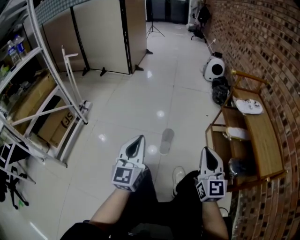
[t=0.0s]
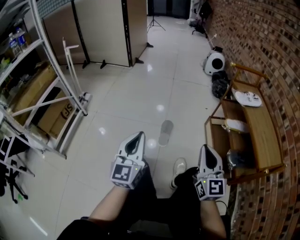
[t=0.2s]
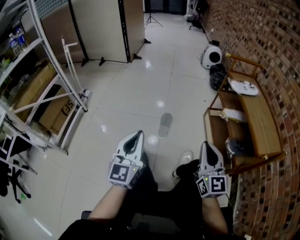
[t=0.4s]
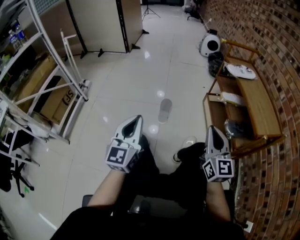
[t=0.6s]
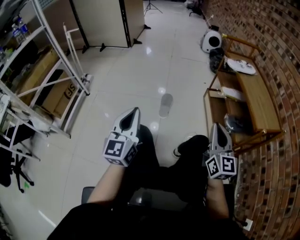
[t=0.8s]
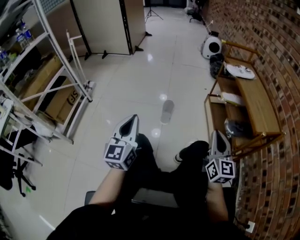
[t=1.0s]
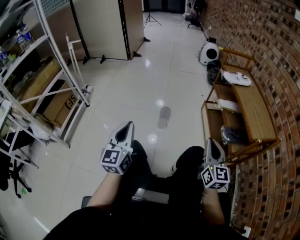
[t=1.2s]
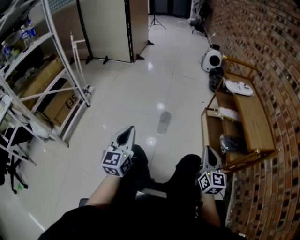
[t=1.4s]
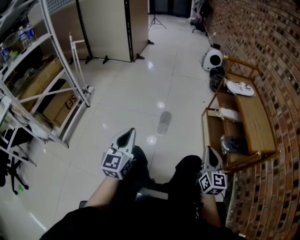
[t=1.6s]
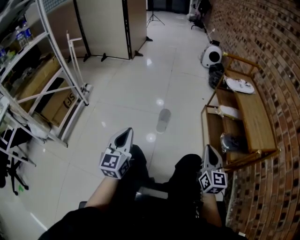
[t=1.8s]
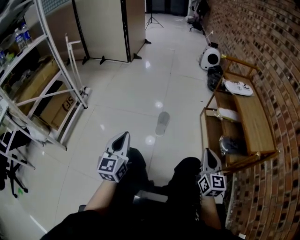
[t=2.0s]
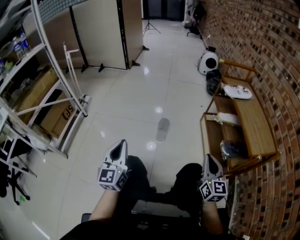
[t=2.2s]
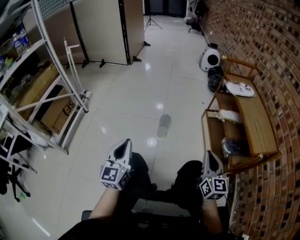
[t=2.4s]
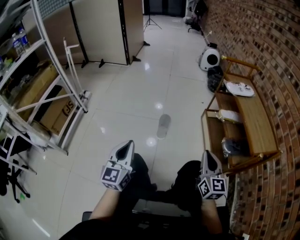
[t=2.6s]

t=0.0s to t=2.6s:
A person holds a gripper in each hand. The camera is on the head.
t=0.0s to t=1.2s: The left gripper goes roughly 15 cm backward. Meanwhile the right gripper goes approximately 15 cm backward and to the right.
t=1.2s to t=2.6s: The grippers move only a little.

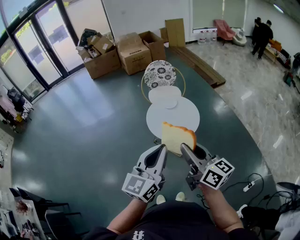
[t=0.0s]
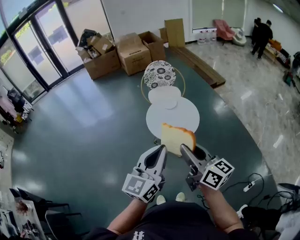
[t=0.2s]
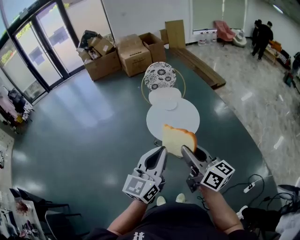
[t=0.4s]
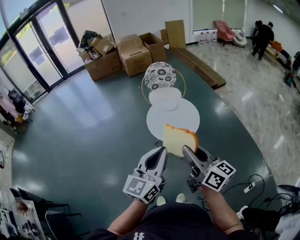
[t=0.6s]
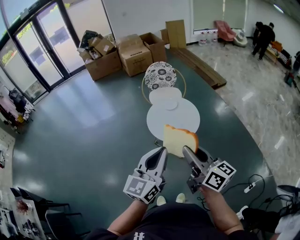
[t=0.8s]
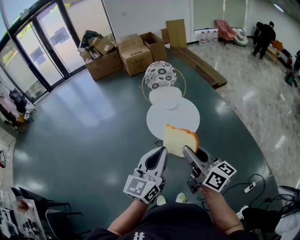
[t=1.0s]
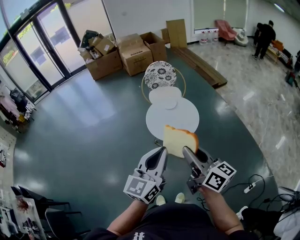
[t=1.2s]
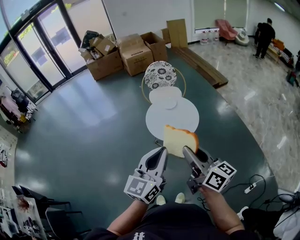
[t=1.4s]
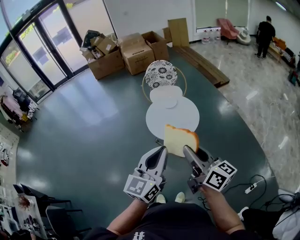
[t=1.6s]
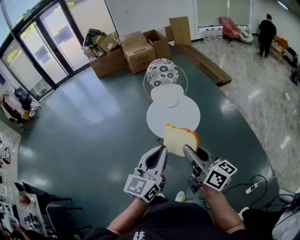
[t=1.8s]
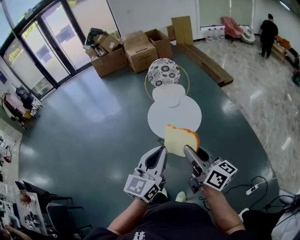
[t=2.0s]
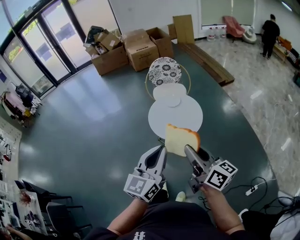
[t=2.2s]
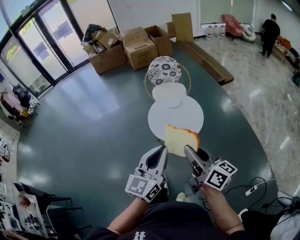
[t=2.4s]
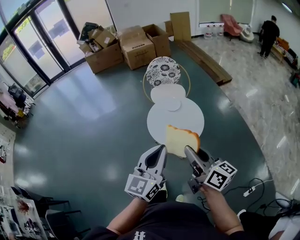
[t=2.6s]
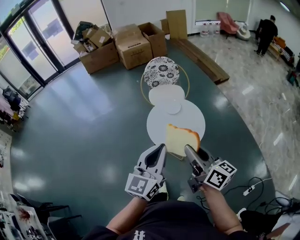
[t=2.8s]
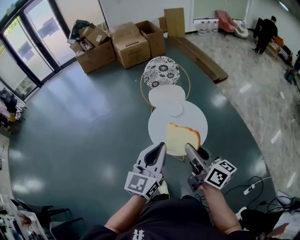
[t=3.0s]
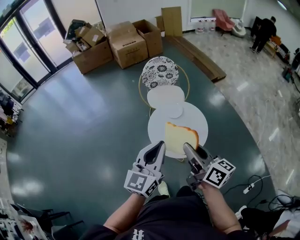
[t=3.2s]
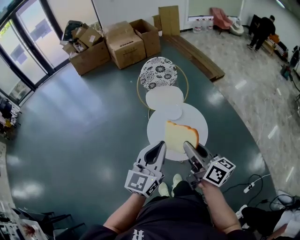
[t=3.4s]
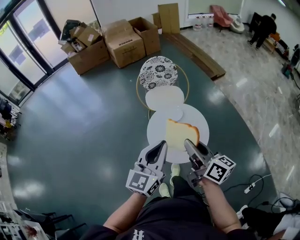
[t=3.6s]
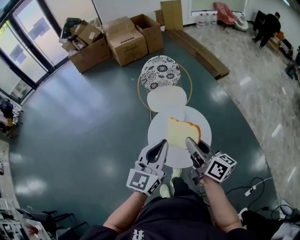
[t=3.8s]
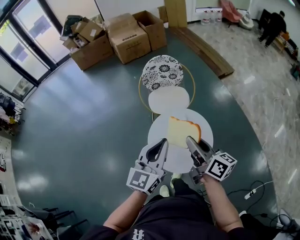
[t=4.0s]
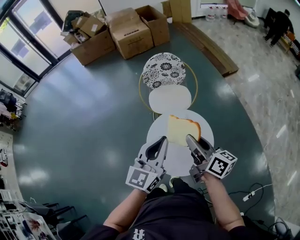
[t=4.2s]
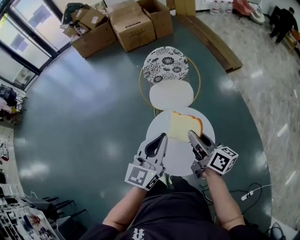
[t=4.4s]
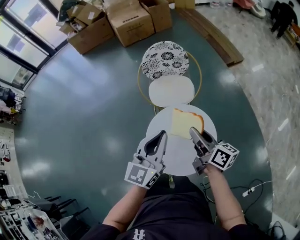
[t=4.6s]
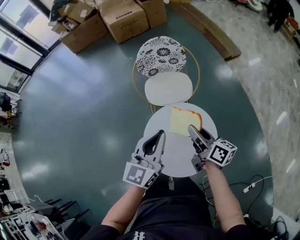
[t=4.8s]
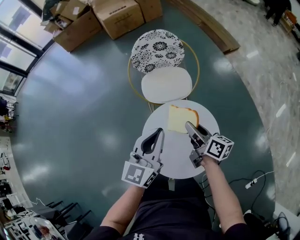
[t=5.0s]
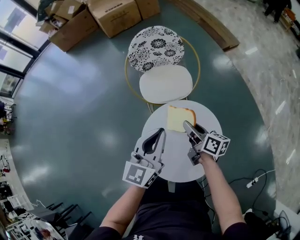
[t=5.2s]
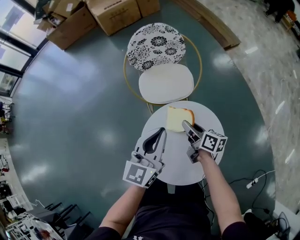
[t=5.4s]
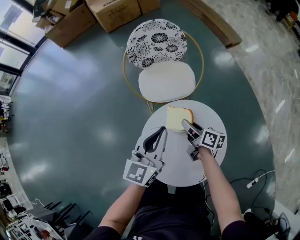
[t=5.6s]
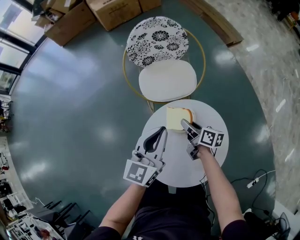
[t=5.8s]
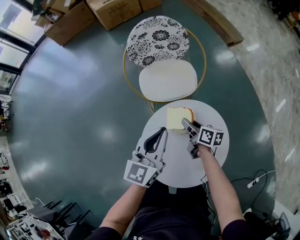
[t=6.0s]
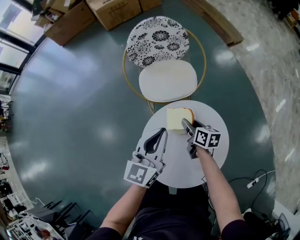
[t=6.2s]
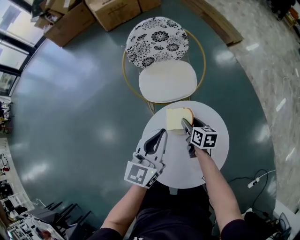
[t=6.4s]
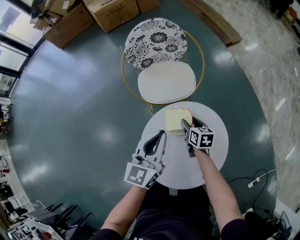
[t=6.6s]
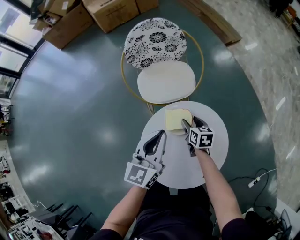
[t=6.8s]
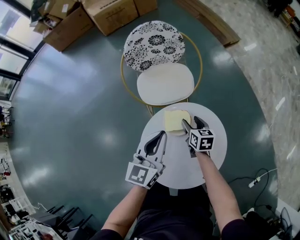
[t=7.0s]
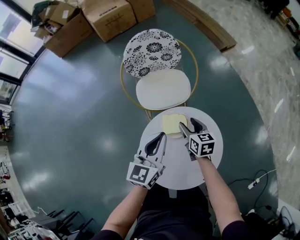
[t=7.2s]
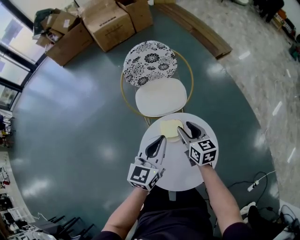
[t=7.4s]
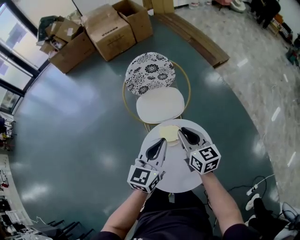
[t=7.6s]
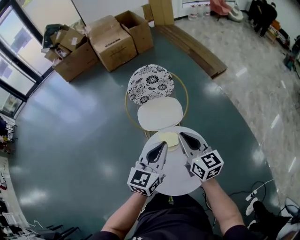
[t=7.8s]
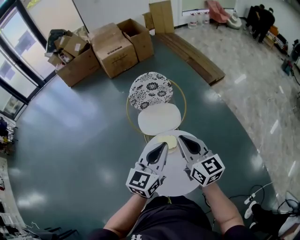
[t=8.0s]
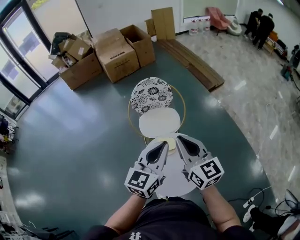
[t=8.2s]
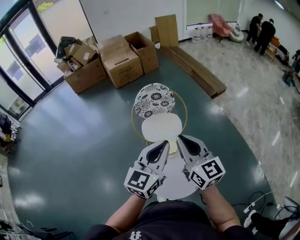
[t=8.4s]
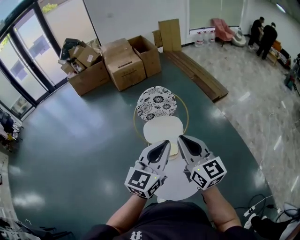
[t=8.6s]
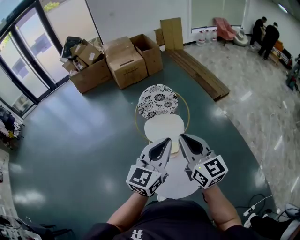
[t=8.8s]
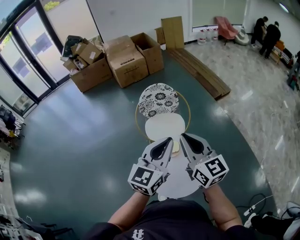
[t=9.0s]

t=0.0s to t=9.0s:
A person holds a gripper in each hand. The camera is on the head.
t=0.0s to t=1.6s: The right gripper is displaced to the right by about 5 cm.
t=1.6s to t=3.0s: Both grippers move forward, approximately 20 cm.
t=3.0s to t=4.4s: The two grippers go approximately 30 cm forward.
t=4.4s to t=6.0s: The left gripper heads downward and forward, covering some 25 cm. Meanwhile the right gripper heads downward, covering roughly 35 cm, and turns by approximately 20 degrees.
t=6.0s to t=7.6s: The left gripper heads upward, covering some 10 cm, while the right gripper heads upward, covering roughly 25 cm, changes its angle by roughly 40 degrees, and opens, then closes again.
t=7.6s to t=9.0s: Both grippers move upward, approximately 25 cm. The right gripper turns by about 20 degrees.

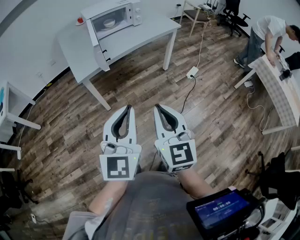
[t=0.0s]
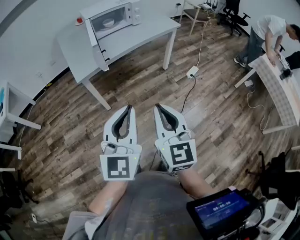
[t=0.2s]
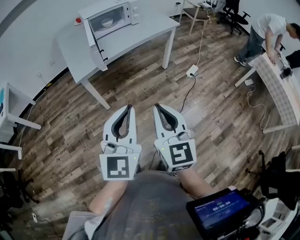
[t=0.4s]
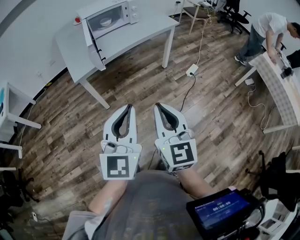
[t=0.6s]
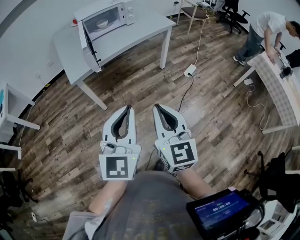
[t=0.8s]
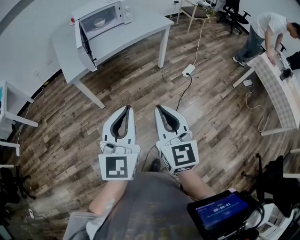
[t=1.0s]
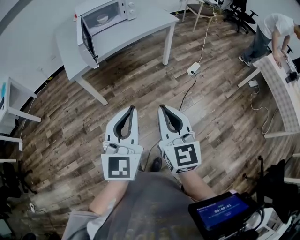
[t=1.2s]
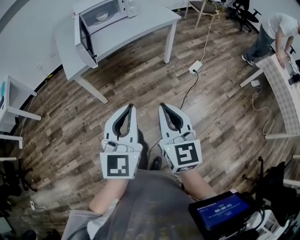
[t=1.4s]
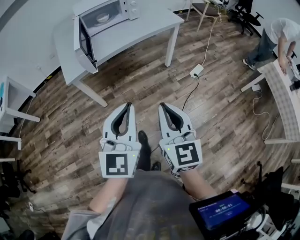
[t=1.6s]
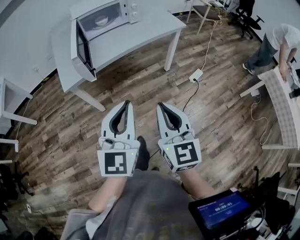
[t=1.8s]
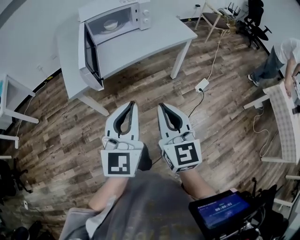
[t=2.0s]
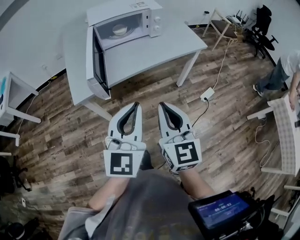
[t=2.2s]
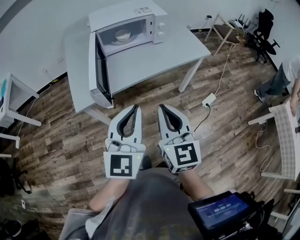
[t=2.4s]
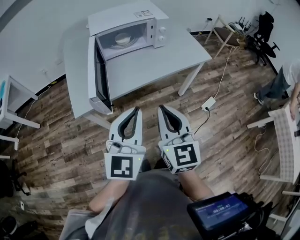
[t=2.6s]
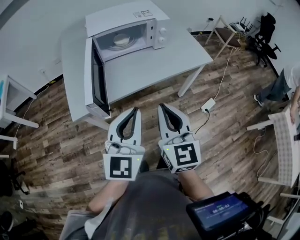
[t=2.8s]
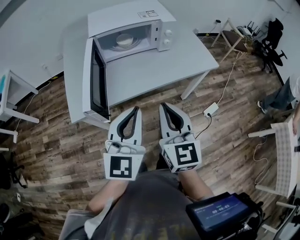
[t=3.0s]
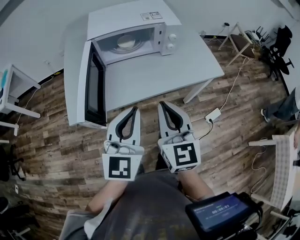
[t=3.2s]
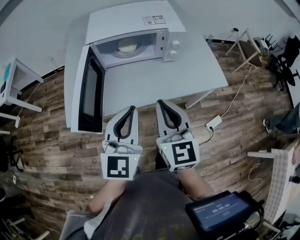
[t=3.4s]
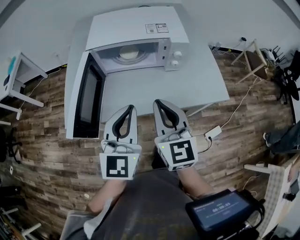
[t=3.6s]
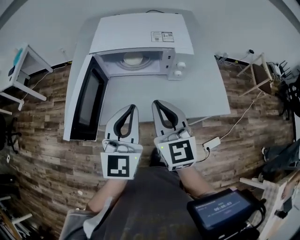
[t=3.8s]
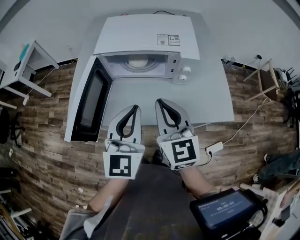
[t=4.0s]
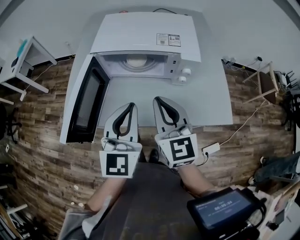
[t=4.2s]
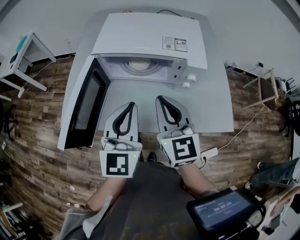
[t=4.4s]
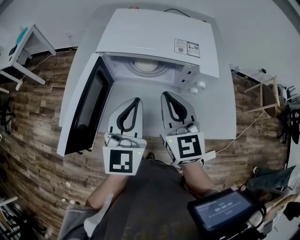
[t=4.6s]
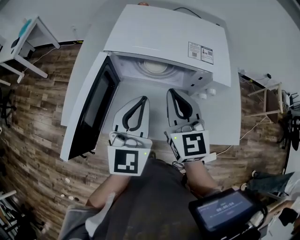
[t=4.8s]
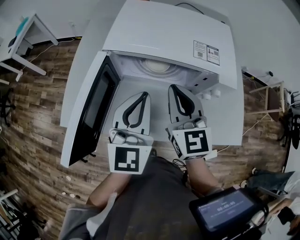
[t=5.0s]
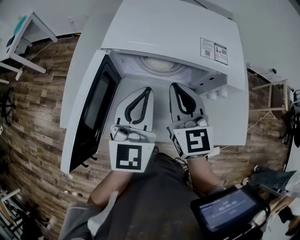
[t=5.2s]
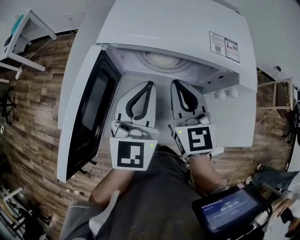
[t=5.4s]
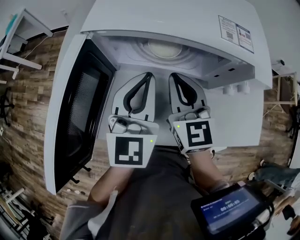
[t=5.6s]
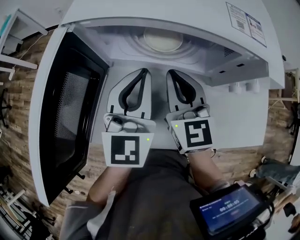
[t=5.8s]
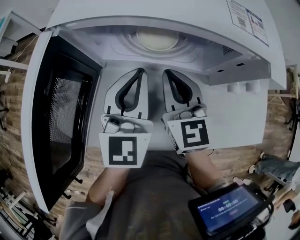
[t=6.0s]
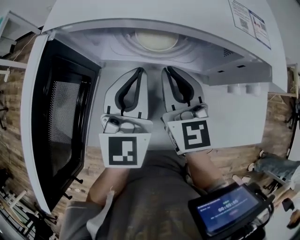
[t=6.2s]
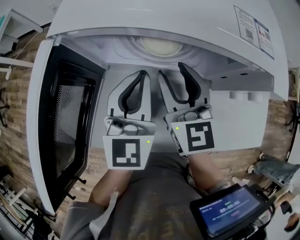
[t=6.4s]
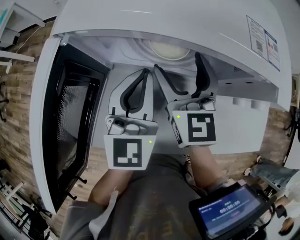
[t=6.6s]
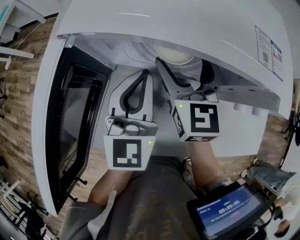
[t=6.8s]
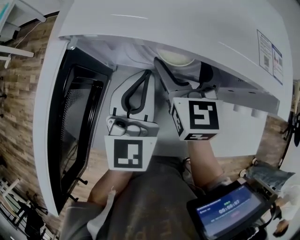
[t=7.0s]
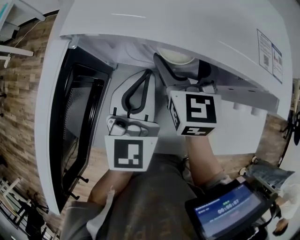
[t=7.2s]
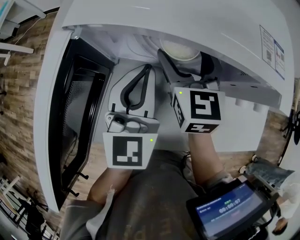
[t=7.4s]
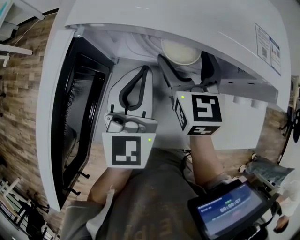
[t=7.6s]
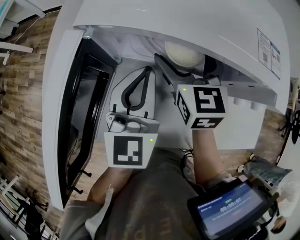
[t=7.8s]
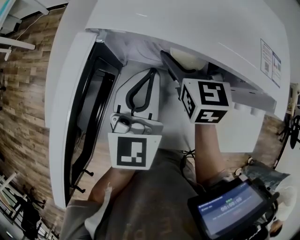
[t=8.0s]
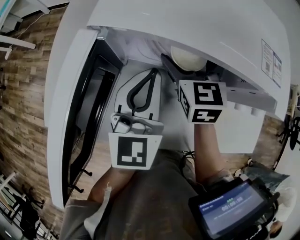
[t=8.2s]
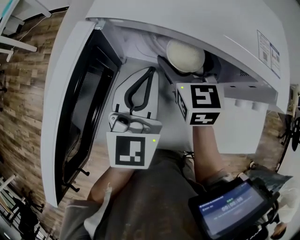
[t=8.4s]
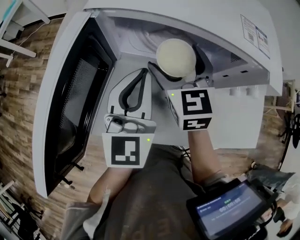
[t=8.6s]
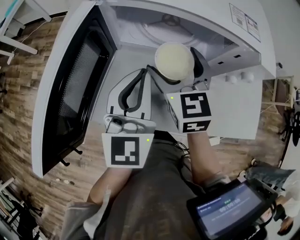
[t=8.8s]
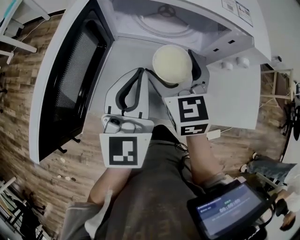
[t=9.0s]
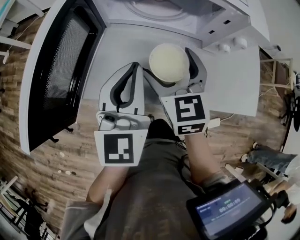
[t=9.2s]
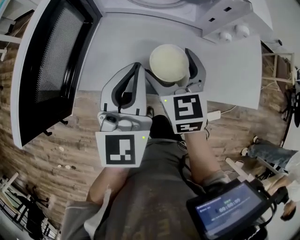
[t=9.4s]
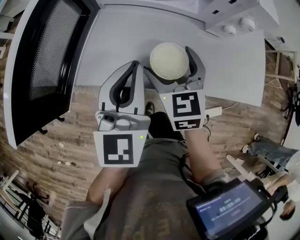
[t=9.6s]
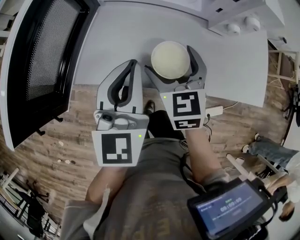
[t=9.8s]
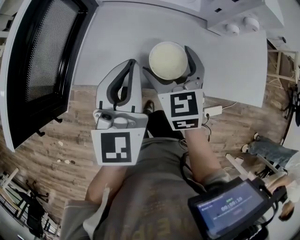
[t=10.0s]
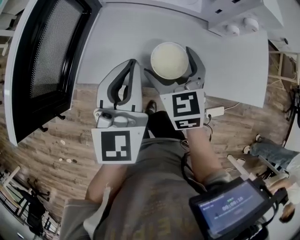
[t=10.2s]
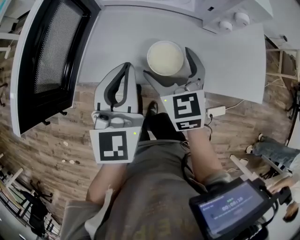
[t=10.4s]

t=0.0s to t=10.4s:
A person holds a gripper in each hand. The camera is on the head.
t=0.0s to t=1.4s: Both grippers move to the right, roughly 10 cm.
t=1.4s to t=3.0s: The two grippers go approximately 35 cm forward.
t=3.0s to t=4.4s: The left gripper moves roughly 20 cm, and changes its angle by some 30 degrees, while the right gripper moves about 25 cm, and changes its angle by roughly 30 degrees.
t=4.4s to t=6.0s: The grippers both shift downward and forward by approximately 20 cm.
t=6.0s to t=7.4s: The right gripper moves forward, roughly 10 cm, and opens up.
t=7.4s to t=9.0s: The grippers both shift backward by roughly 10 cm.
t=9.0s to t=10.4s: The right gripper heads backward and downward, covering about 10 cm. Meanwhile the left gripper travels backward by roughly 5 cm.

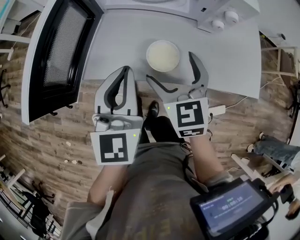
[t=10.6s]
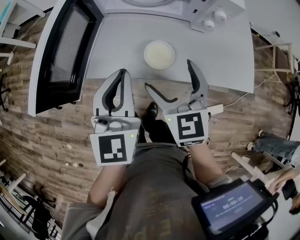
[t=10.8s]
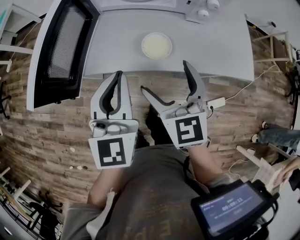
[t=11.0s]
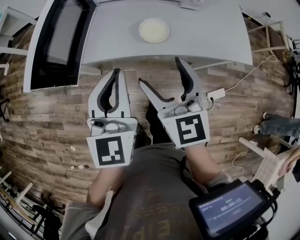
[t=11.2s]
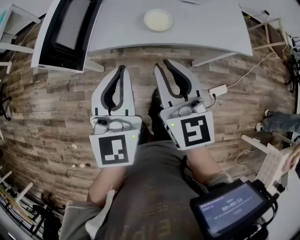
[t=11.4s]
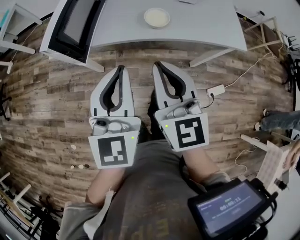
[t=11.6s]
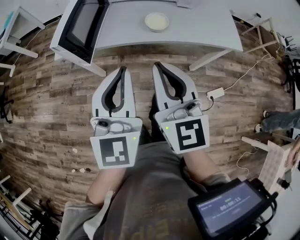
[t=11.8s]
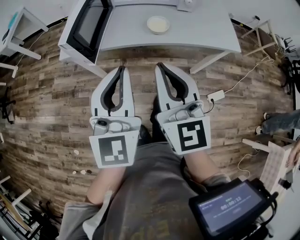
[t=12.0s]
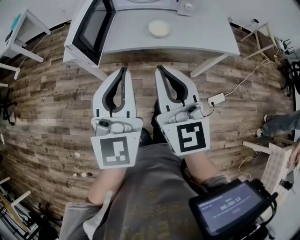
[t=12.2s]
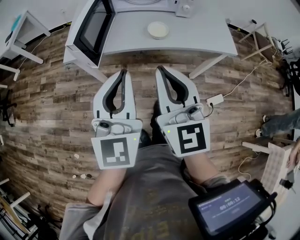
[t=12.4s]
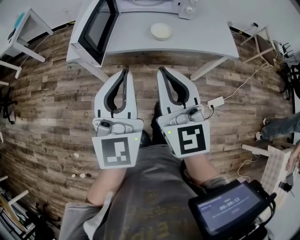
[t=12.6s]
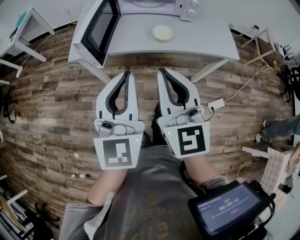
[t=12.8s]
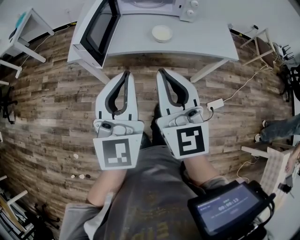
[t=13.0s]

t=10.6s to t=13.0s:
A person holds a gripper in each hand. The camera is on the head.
t=10.6s to t=11.8s: Both grippers travel together backward and upward, roughly 25 cm. The right gripper rotates some 30 degrees, and closes its fingers.
t=11.8s to t=13.0s: The grippers make only small movements.
